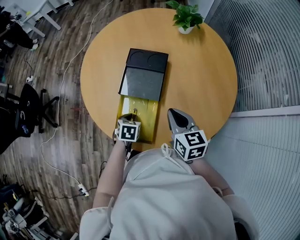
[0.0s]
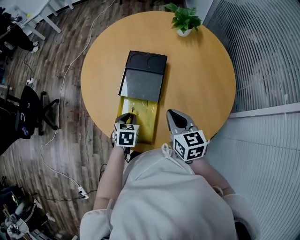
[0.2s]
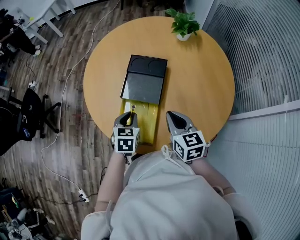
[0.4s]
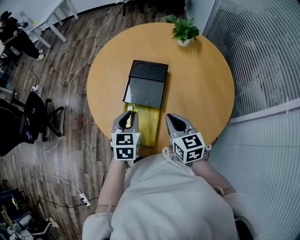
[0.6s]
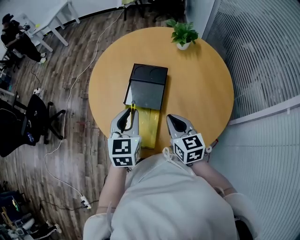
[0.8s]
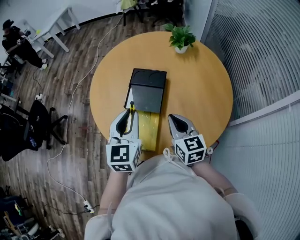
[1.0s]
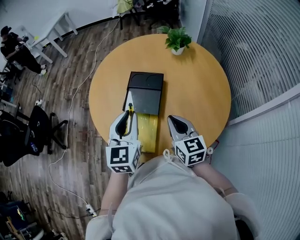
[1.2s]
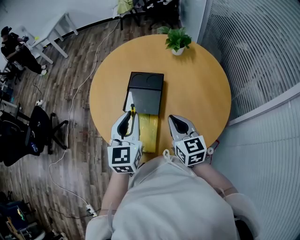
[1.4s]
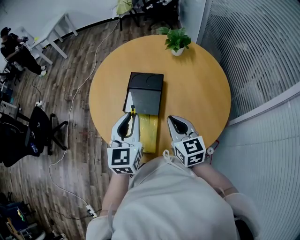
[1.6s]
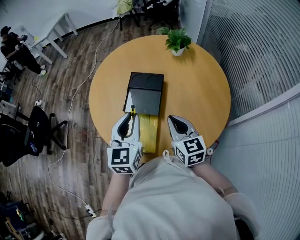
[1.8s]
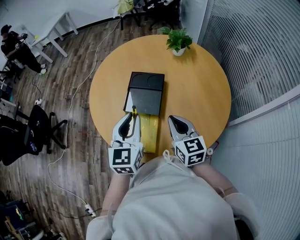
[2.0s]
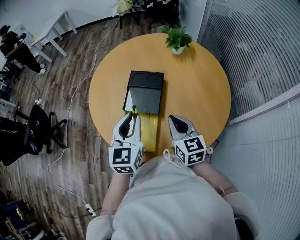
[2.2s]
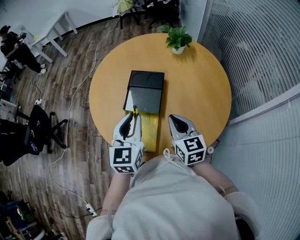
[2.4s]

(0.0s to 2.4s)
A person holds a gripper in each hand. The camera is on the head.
0.0s - 1.2s: The left gripper travels upward by roughly 30 cm, and tilts its fingers roughly 50 degrees upward; the right gripper moves upward, approximately 5 cm.
1.2s - 2.4s: The grippers stay close to where they were, moving slightly.

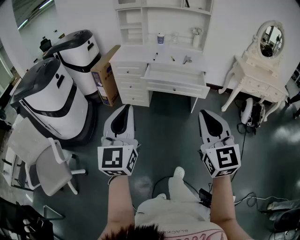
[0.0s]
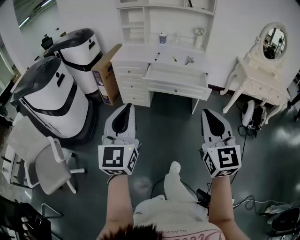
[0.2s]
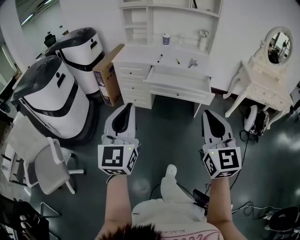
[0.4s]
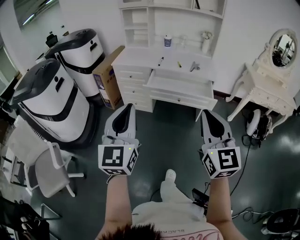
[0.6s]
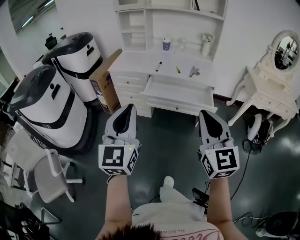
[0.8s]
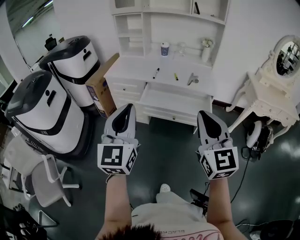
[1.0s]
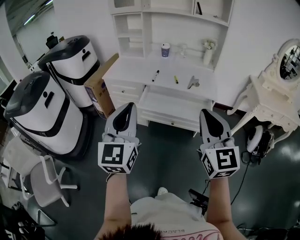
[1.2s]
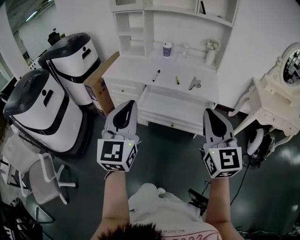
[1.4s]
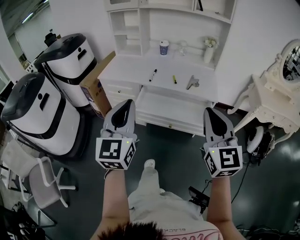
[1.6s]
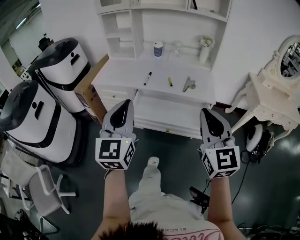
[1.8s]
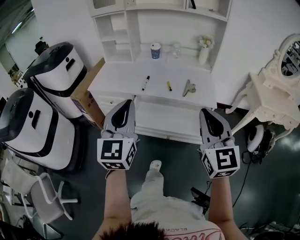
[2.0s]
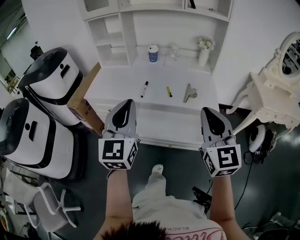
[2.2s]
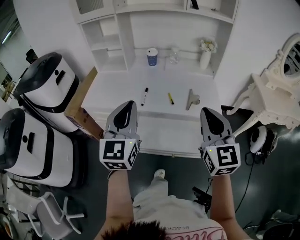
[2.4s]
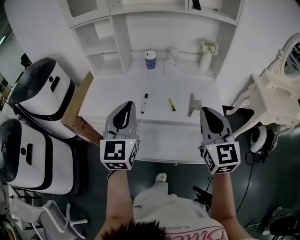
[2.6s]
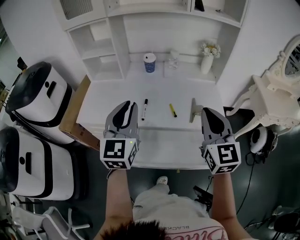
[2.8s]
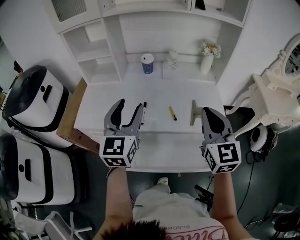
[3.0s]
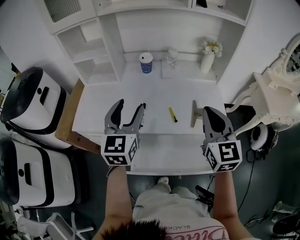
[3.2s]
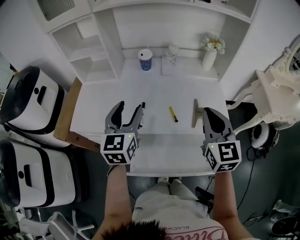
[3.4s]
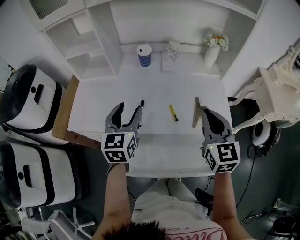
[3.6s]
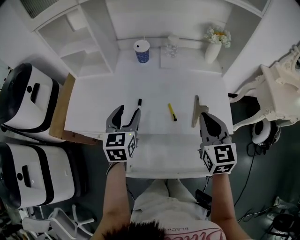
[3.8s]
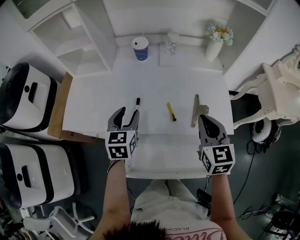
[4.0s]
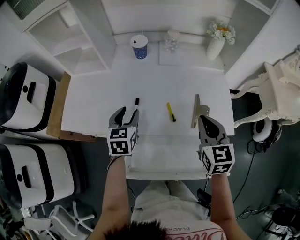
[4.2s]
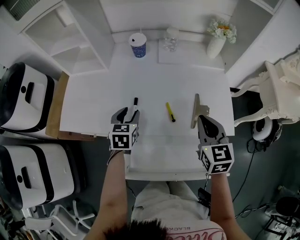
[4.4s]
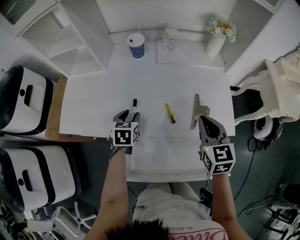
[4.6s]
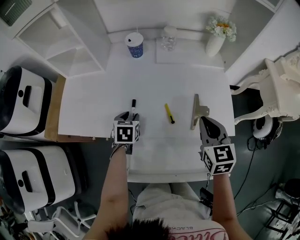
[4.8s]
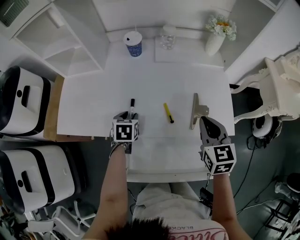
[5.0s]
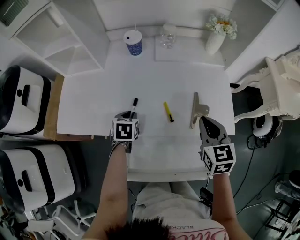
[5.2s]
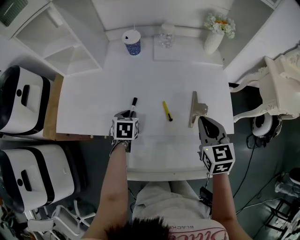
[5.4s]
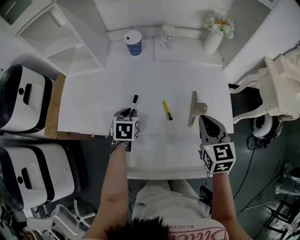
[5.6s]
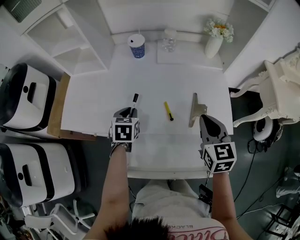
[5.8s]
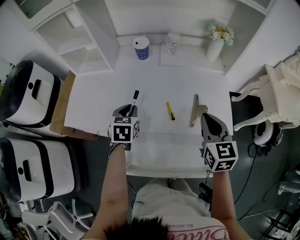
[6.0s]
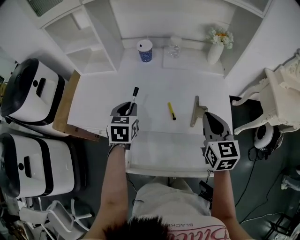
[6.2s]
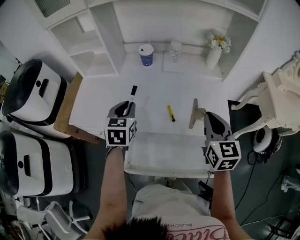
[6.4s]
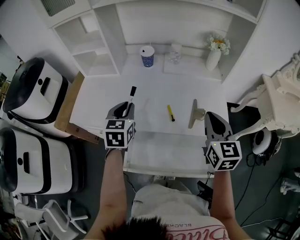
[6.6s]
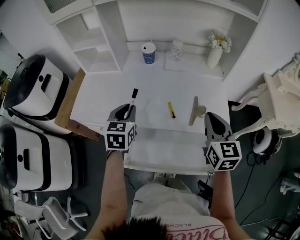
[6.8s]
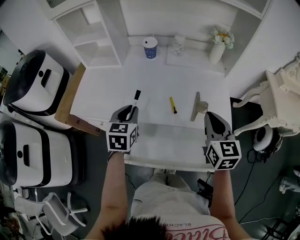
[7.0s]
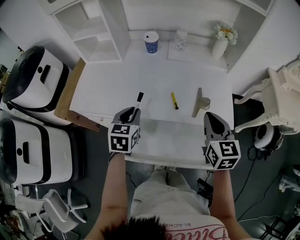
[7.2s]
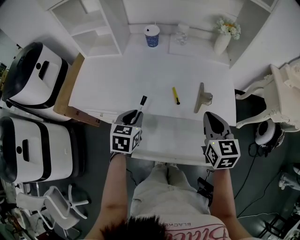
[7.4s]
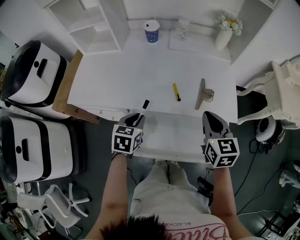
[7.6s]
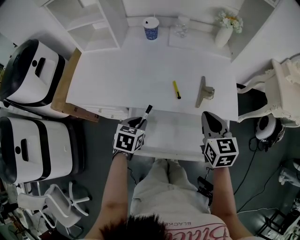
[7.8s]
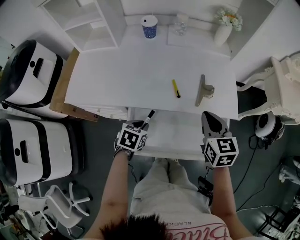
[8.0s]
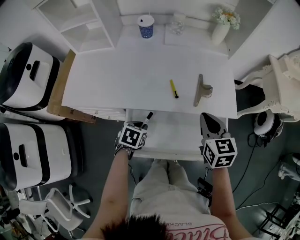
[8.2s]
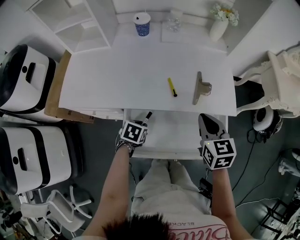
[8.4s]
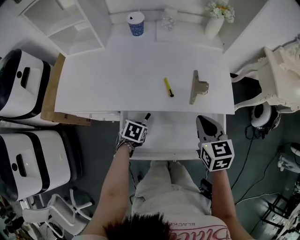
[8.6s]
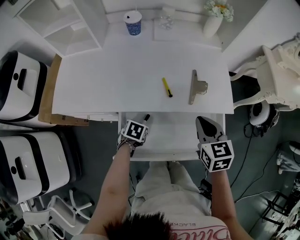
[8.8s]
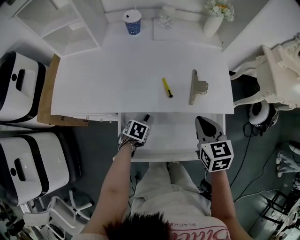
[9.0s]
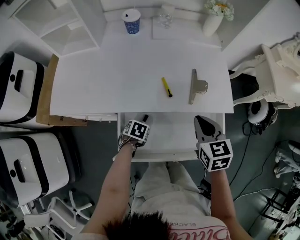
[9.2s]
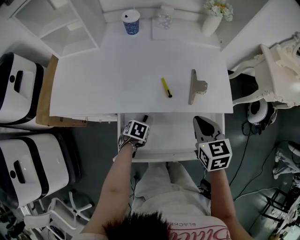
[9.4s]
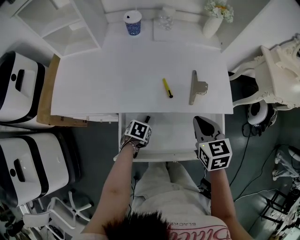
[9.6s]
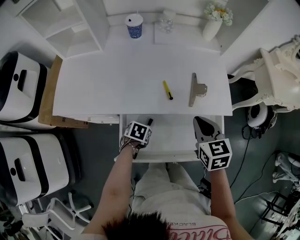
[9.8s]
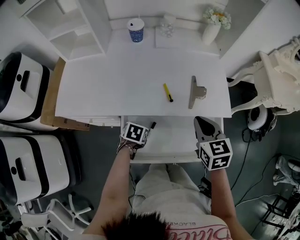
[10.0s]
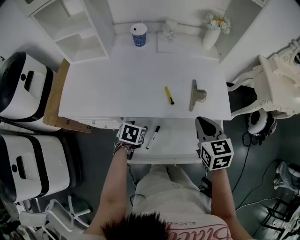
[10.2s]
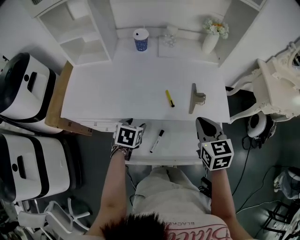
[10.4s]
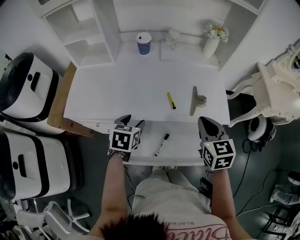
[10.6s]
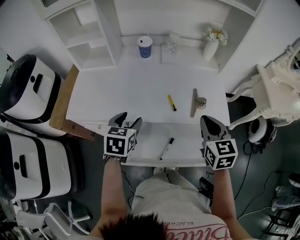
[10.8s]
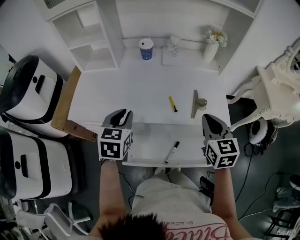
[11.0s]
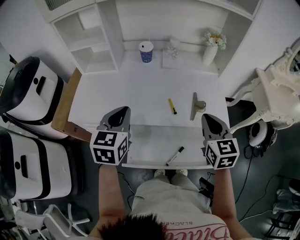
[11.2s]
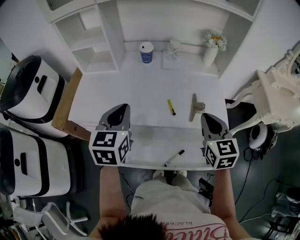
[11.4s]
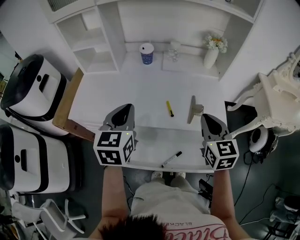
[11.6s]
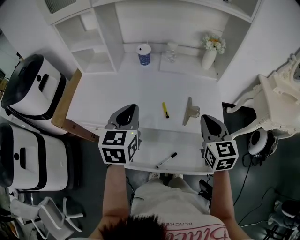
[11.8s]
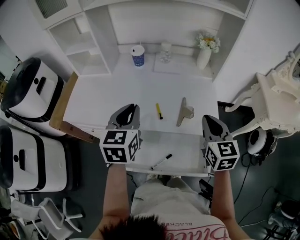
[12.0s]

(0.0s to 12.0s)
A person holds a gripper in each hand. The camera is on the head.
0.0s - 1.6s: The two grippers go some 35 cm forward.
1.6s - 3.0s: The two grippers go about 40 cm forward. The left gripper opens.
3.0s - 4.4s: The left gripper shifts roughly 30 cm downward and forward, and angles its fingers downward, by some 40 degrees. Meanwhile the right gripper heads downward and forward, covering about 20 cm, and rotates some 20 degrees.
6.0s - 7.6s: The right gripper travels backward by approximately 5 cm, while the left gripper moves backward, approximately 15 cm.
7.6s - 9.0s: The right gripper travels downward by about 5 cm, while the left gripper goes approximately 20 cm downward, and changes its angle by some 40 degrees.
9.0s - 10.4s: The left gripper travels upward by roughly 15 cm, changes its angle by approximately 20 degrees, and opens. The right gripper is displaced upward by about 5 cm.
10.4s - 12.0s: The left gripper moves upward, roughly 25 cm, tips its fingers upward by about 40 degrees, and closes up. Meanwhile the right gripper is displaced to the right and upward by roughly 10 cm.

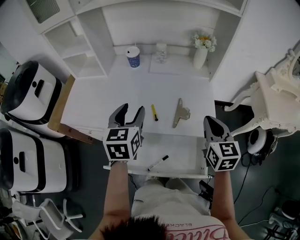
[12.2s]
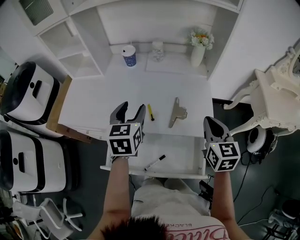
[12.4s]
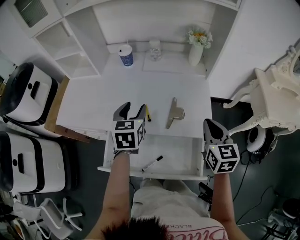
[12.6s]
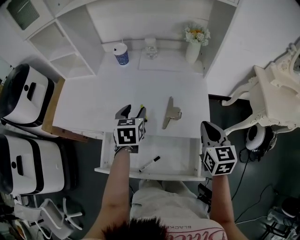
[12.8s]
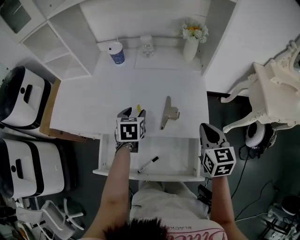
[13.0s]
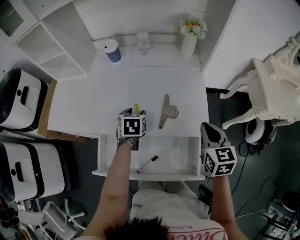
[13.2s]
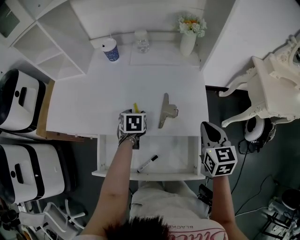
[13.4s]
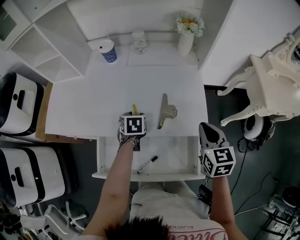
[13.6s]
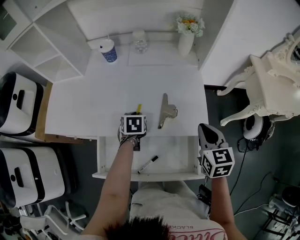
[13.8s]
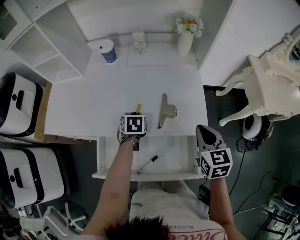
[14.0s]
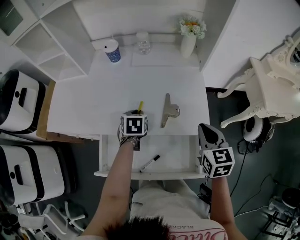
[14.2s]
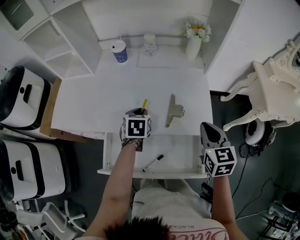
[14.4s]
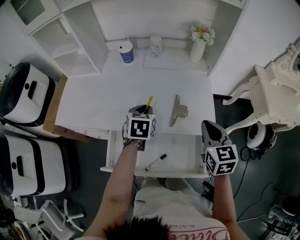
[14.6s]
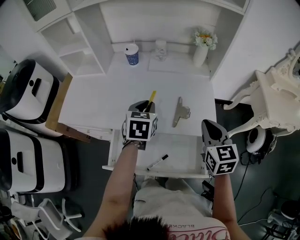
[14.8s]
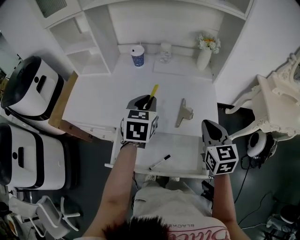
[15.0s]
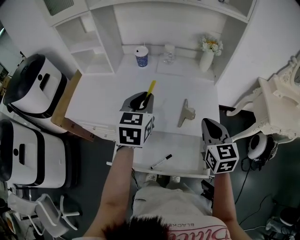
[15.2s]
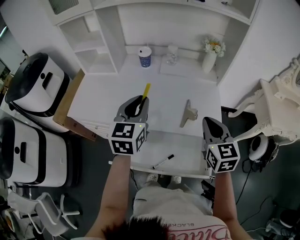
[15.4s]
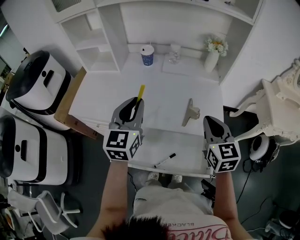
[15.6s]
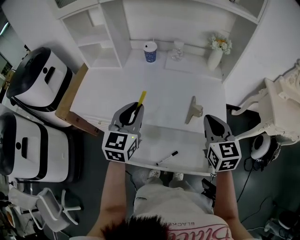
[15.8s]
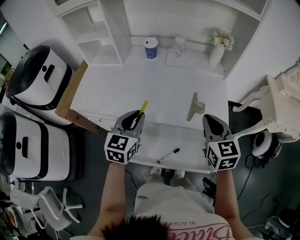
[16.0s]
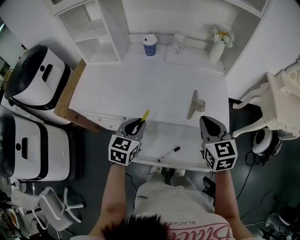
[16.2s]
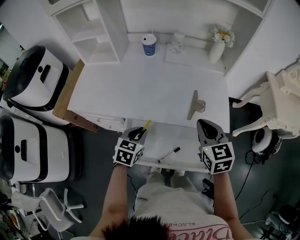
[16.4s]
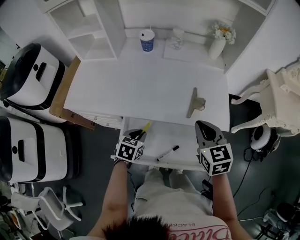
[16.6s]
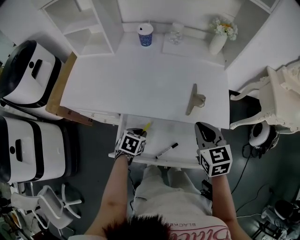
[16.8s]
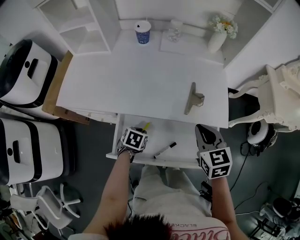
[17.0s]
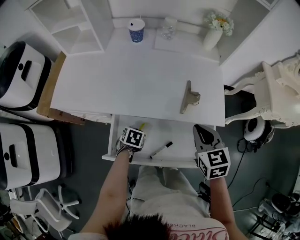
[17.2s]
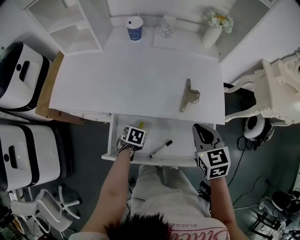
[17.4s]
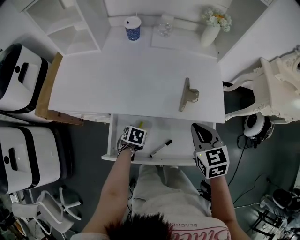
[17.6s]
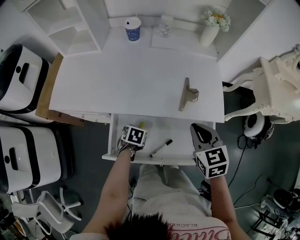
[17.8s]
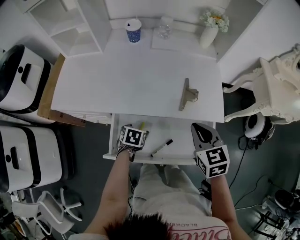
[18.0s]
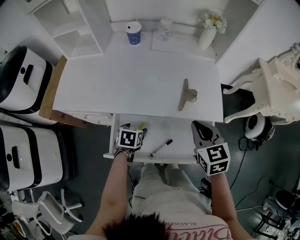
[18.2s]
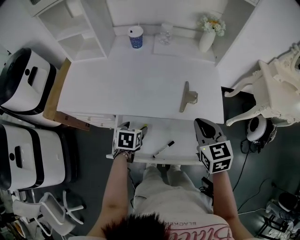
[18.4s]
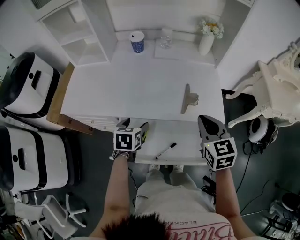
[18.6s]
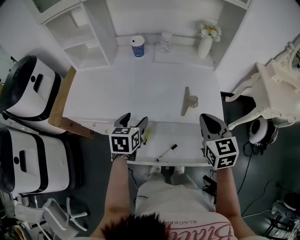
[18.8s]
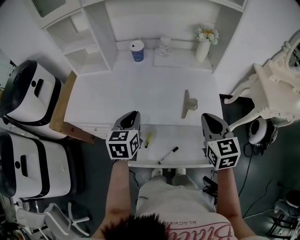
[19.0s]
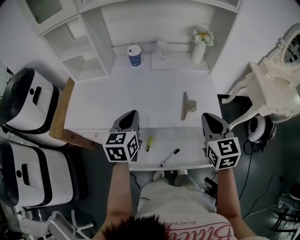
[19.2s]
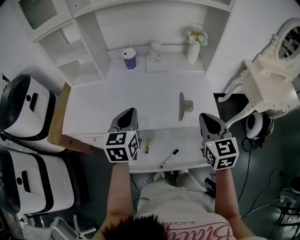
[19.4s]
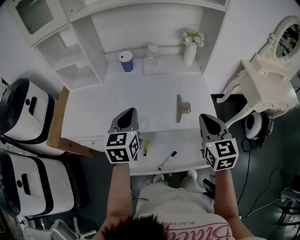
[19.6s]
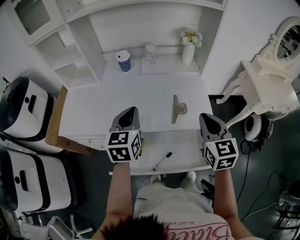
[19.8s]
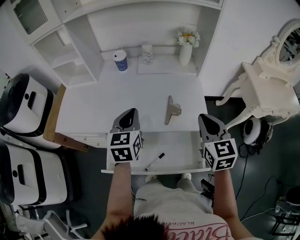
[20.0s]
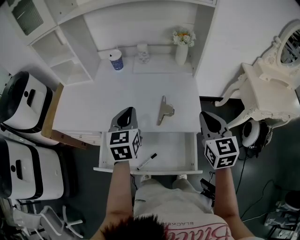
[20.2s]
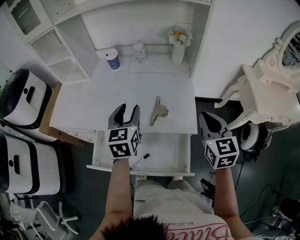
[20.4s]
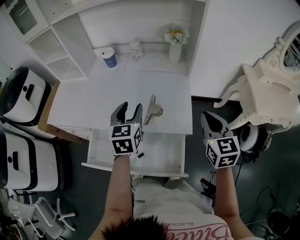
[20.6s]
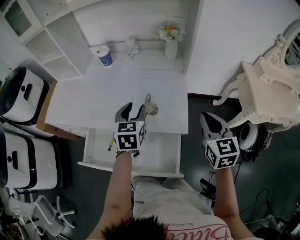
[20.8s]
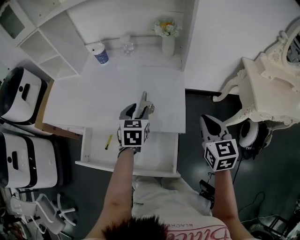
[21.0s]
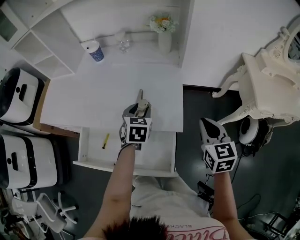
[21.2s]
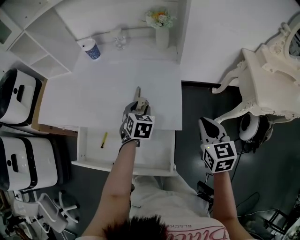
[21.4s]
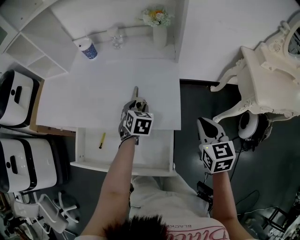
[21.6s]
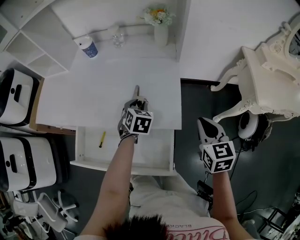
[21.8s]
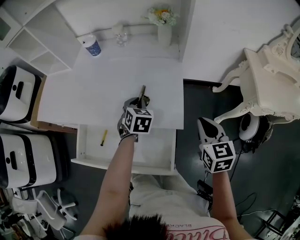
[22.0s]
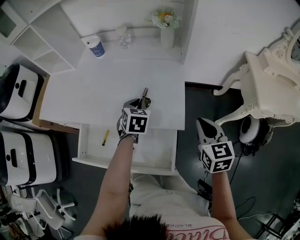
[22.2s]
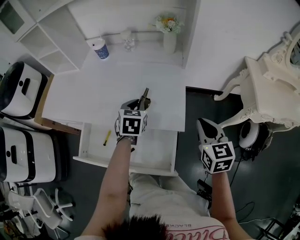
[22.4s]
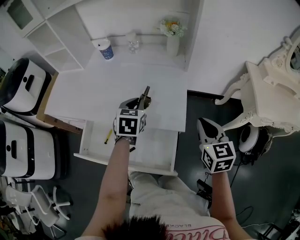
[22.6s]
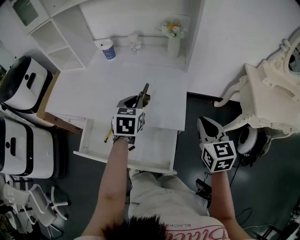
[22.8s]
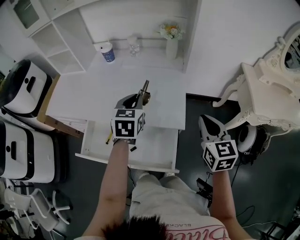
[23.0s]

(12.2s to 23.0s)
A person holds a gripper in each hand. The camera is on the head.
12.2s - 13.8s: The right gripper heads downward, covering about 10 cm; the left gripper heads downward, covering about 25 cm, tips its fingers downward by approximately 40 degrees, and closes.
13.8s - 15.2s: The left gripper travels upward by approximately 25 cm, and tilts its fingers some 40 degrees upward. The right gripper travels to the left and upward by approximately 10 cm.
15.2s - 16.8s: The left gripper goes roughly 30 cm downward, and tips its fingers downward by about 40 degrees; the right gripper travels downward and to the left by roughly 10 cm.
16.8s - 18.4s: The left gripper travels downward and back again, approximately 10 cm each way, and opens up.
18.4s - 20.0s: The left gripper heads upward, covering roughly 20 cm, tilts its fingers roughly 40 degrees upward, and closes its fingers. The right gripper goes approximately 10 cm to the right and upward.
20.0s - 21.4s: Both grippers move to the right and downward, about 25 cm. The left gripper swivels roughly 30 degrees, and opens.
21.4s - 23.0s: The right gripper is displaced upward by approximately 5 cm. The left gripper heads upward, covering some 15 cm, turns by about 20 degrees, and closes up.
